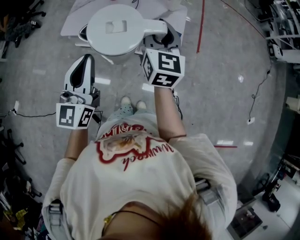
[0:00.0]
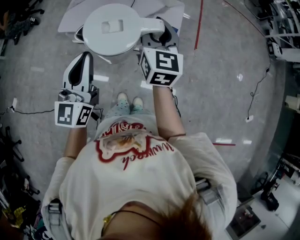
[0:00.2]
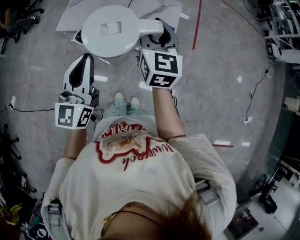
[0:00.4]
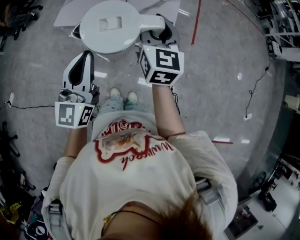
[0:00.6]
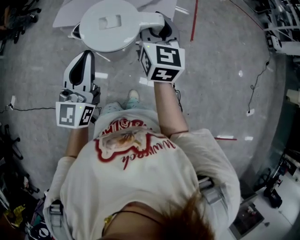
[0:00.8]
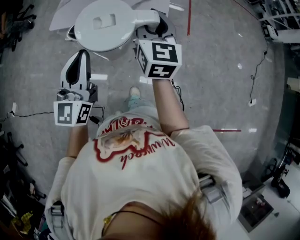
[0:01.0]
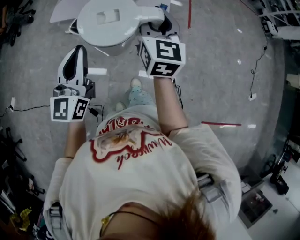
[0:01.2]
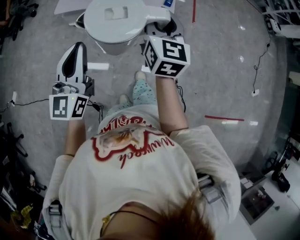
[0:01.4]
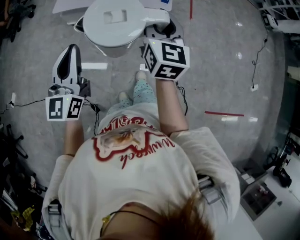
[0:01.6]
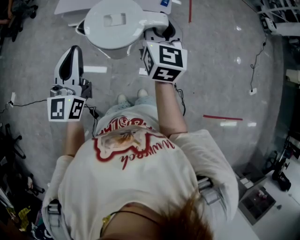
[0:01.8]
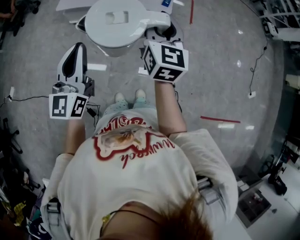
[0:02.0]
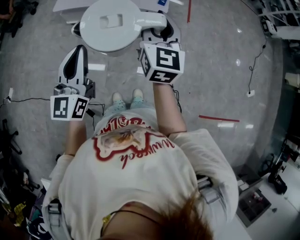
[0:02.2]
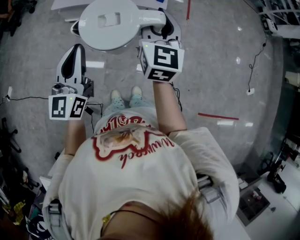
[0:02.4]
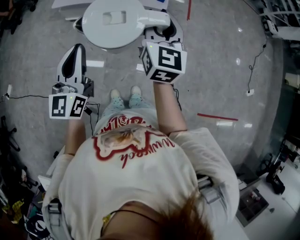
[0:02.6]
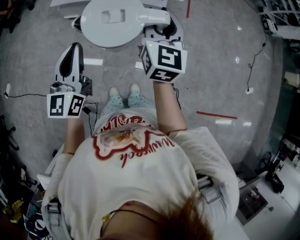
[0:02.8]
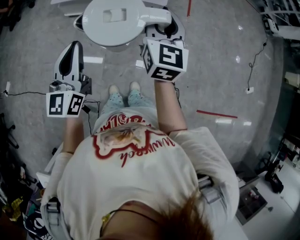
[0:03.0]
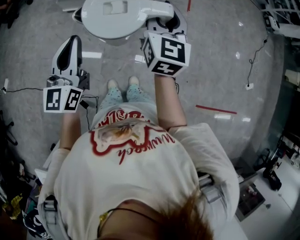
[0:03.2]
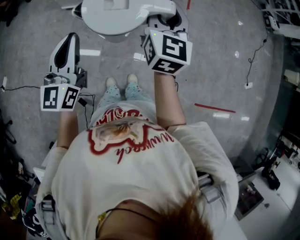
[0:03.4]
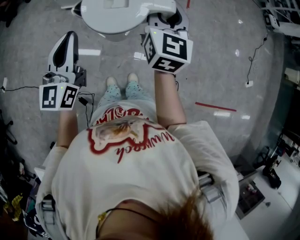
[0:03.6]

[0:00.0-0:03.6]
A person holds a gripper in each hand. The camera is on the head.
0:00.0 to 0:01.8: The two grippers go approximately 20 cm backward.
0:01.8 to 0:03.6: Both grippers move to the right, some 5 cm.

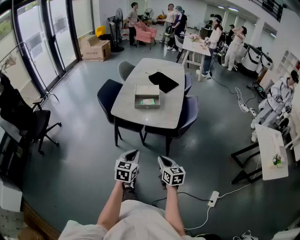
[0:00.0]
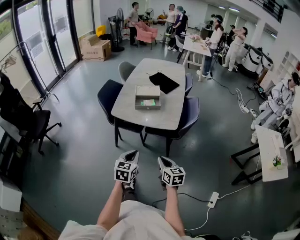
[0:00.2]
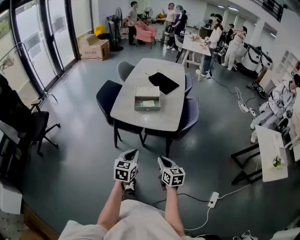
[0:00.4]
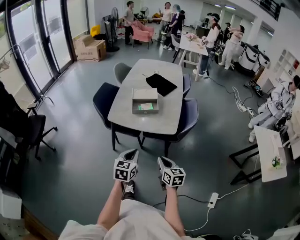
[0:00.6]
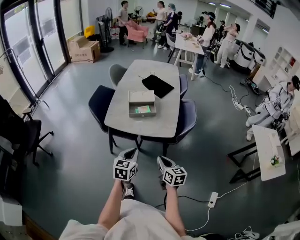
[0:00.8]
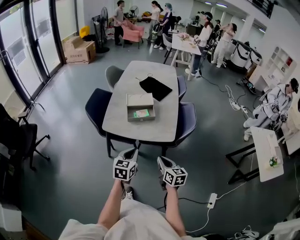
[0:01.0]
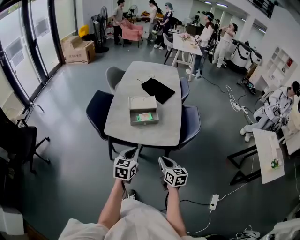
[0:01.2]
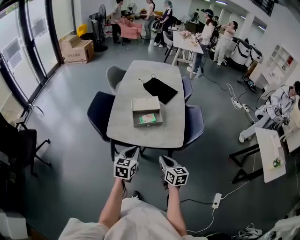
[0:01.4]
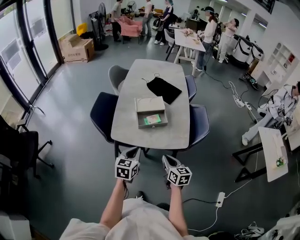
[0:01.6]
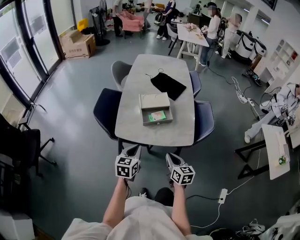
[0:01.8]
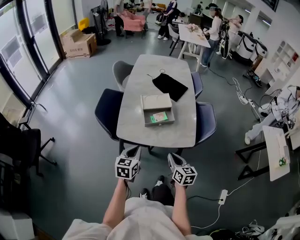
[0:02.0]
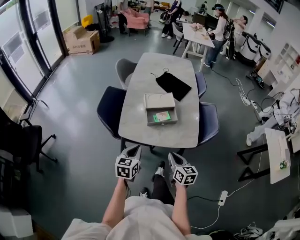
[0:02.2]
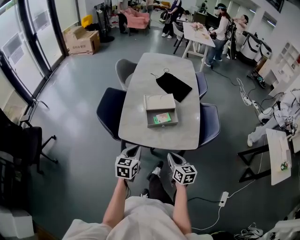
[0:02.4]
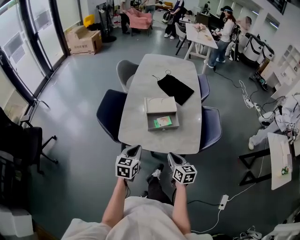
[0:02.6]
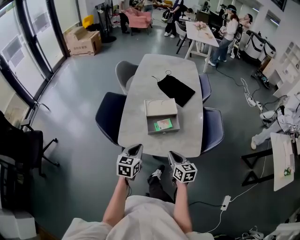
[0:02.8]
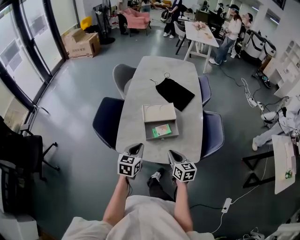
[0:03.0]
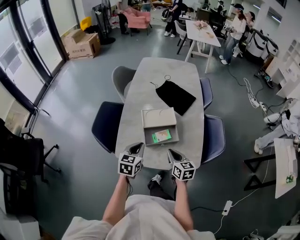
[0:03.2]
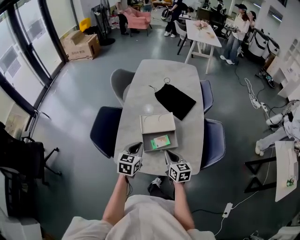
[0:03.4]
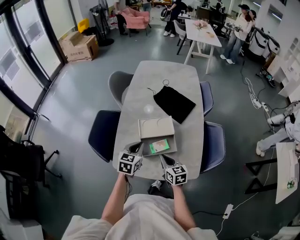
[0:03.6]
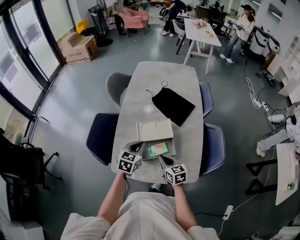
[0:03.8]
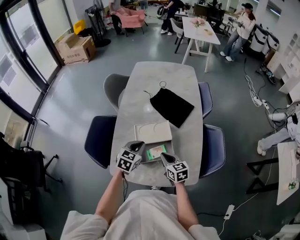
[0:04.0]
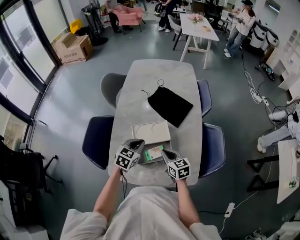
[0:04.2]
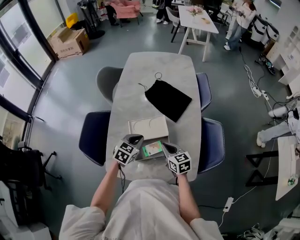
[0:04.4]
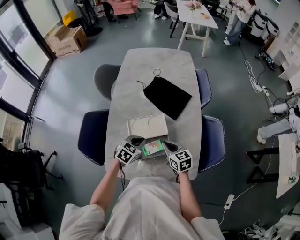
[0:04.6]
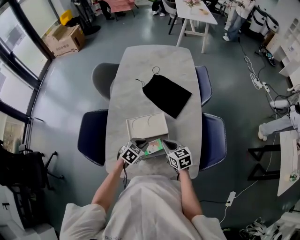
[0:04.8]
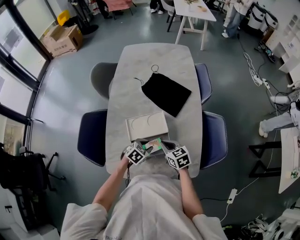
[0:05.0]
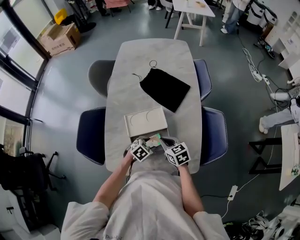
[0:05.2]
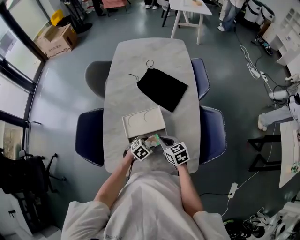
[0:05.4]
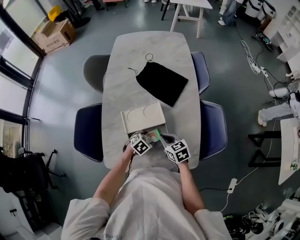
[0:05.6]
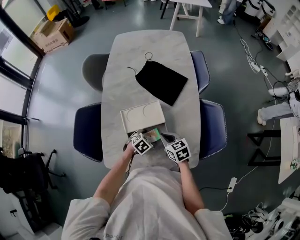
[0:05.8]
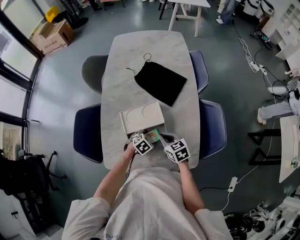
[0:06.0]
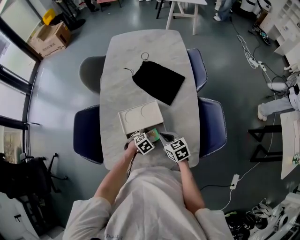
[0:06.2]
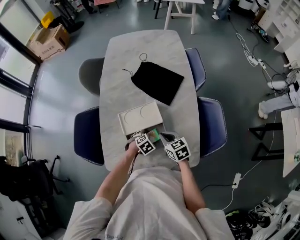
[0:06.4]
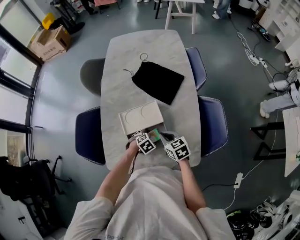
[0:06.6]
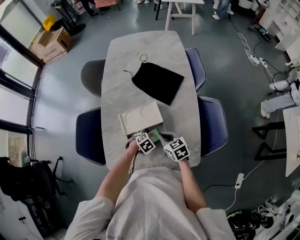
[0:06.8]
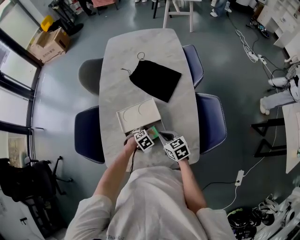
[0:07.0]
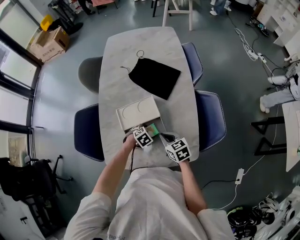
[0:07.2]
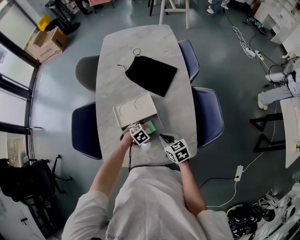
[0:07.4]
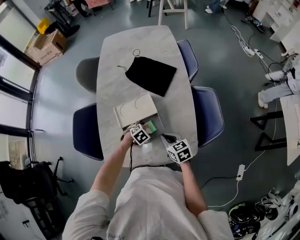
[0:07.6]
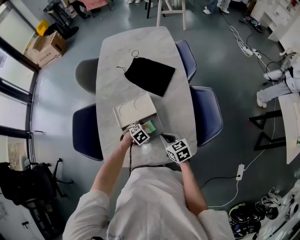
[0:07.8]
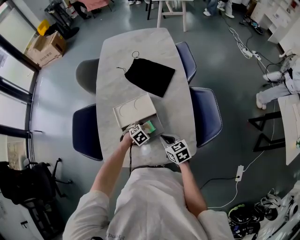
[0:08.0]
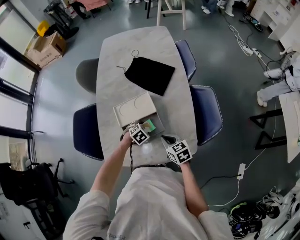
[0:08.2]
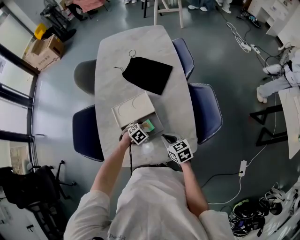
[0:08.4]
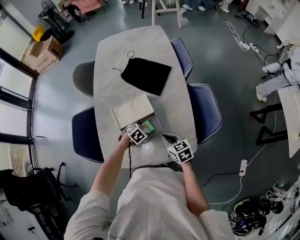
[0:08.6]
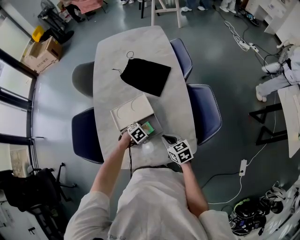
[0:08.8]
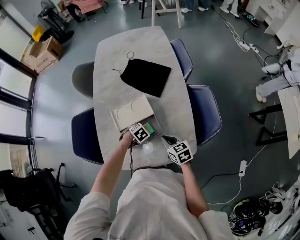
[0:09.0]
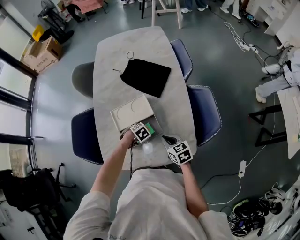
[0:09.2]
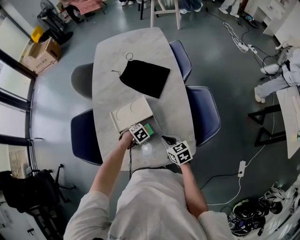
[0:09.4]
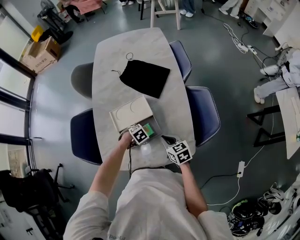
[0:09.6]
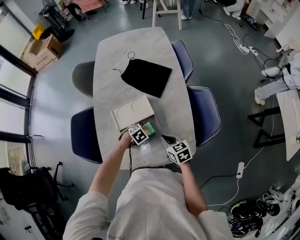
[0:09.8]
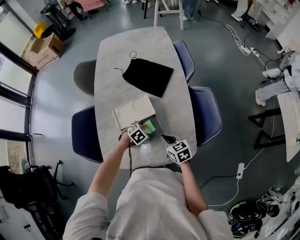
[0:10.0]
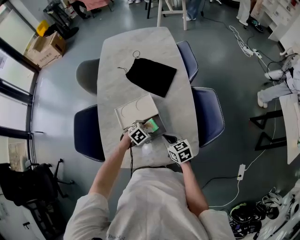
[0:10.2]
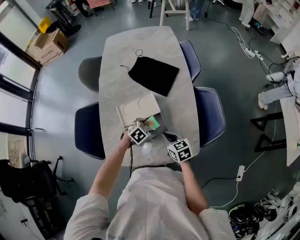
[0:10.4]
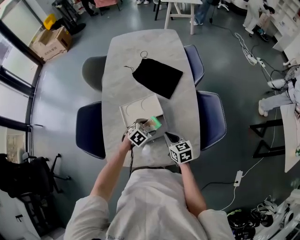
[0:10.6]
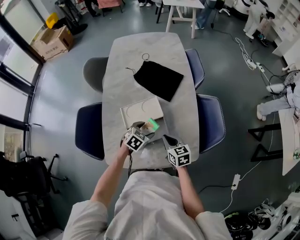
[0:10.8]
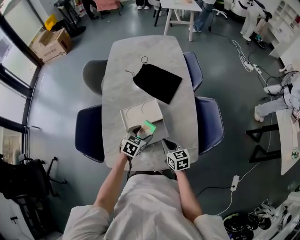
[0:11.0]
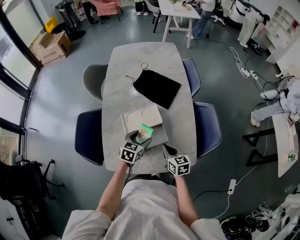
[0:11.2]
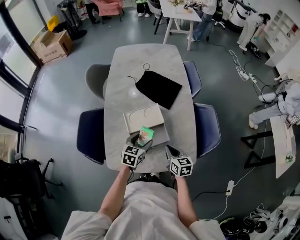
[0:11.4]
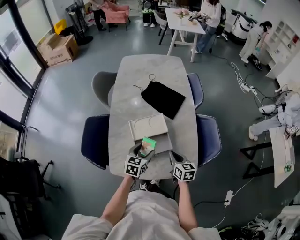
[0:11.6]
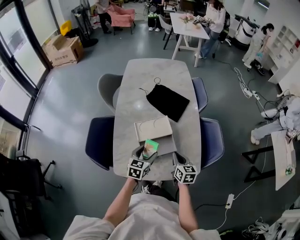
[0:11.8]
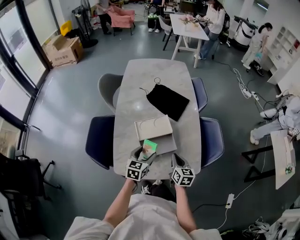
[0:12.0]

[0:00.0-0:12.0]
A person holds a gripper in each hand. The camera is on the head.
0:00.0 to 0:01.6: The right gripper is displaced forward by some 25 cm, while the left gripper goes some 30 cm forward and to the left.
0:01.6 to 0:03.0: Both grippers travel together forward, approximately 15 cm.
0:03.0 to 0:04.4: The two grippers go about 20 cm forward. The left gripper swivels some 20 degrees.
0:04.4 to 0:06.0: The left gripper shifts about 20 cm downward and to the right, rotates about 40 degrees, and opens up, while the right gripper heads downward, covering about 5 cm.
0:06.0 to 0:07.6: The right gripper heads backward and to the right, covering about 10 cm.
0:07.6 to 0:09.0: The grippers make only small movements.
0:09.0 to 0:10.4: The left gripper shifts about 5 cm upward.
0:10.4 to 0:12.0: The right gripper travels upward by approximately 5 cm, and rotates about 30 degrees. Meanwhile the left gripper travels upward, to the left and backward by roughly 20 cm, and points its fingers roughly 30 degrees further upward.

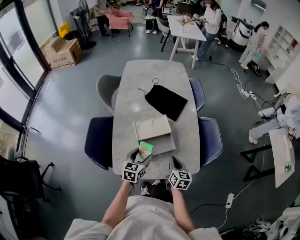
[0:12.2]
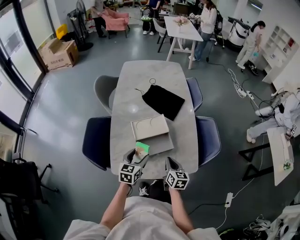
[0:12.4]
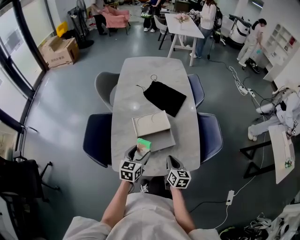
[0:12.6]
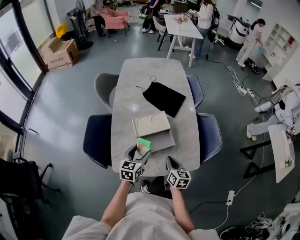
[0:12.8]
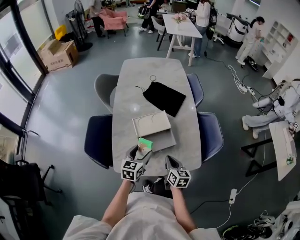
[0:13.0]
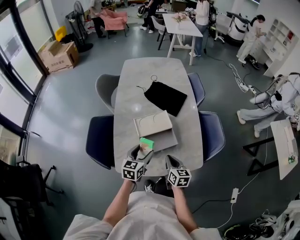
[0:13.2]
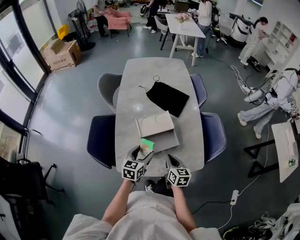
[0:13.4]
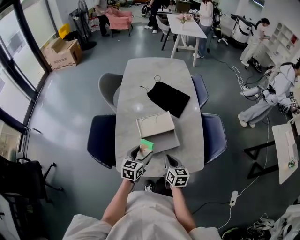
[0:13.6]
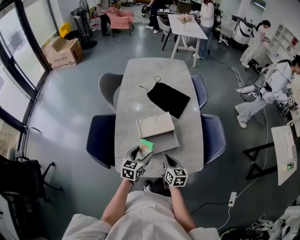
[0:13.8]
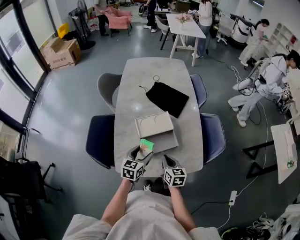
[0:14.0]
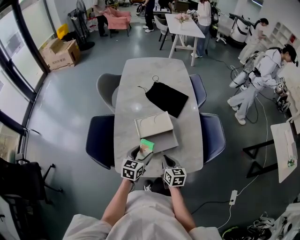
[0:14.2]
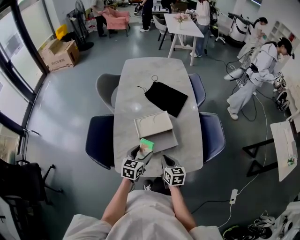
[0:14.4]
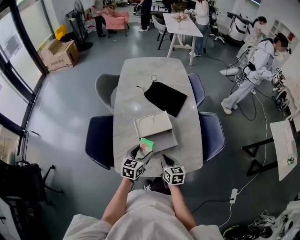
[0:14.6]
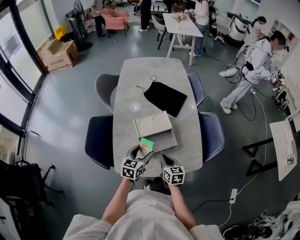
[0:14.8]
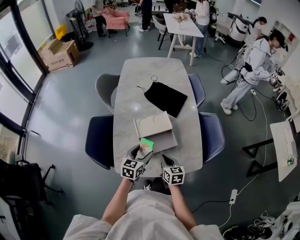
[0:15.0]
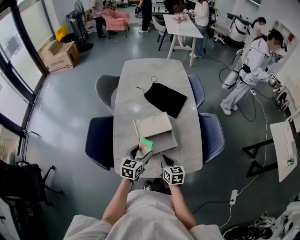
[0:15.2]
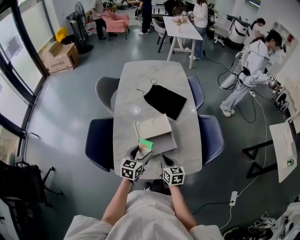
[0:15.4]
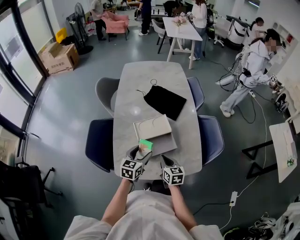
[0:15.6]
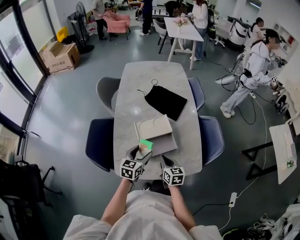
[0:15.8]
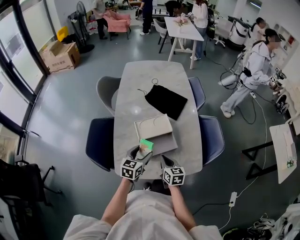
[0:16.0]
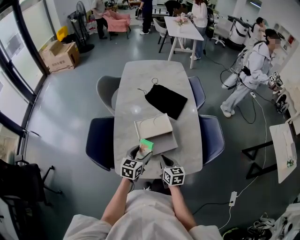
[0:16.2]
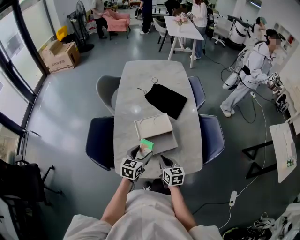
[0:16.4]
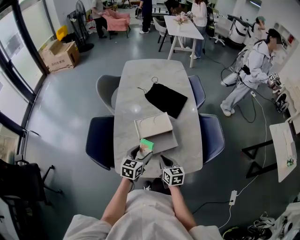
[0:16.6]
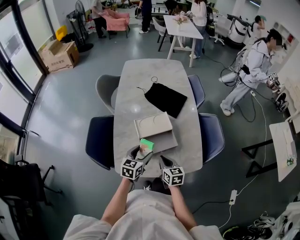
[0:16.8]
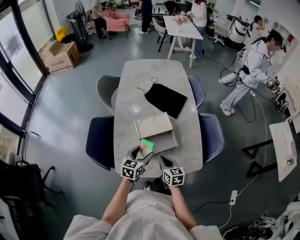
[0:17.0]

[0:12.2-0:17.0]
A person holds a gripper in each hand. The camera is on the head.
0:12.2 to 0:13.8: The right gripper travels to the left by approximately 5 cm.
0:13.8 to 0:17.0: The grippers stay close to where they were, moving slightly.

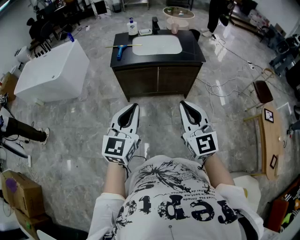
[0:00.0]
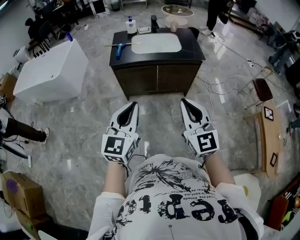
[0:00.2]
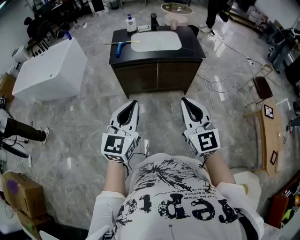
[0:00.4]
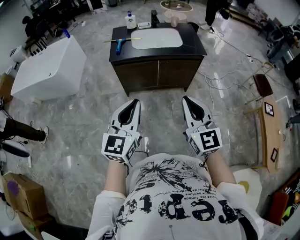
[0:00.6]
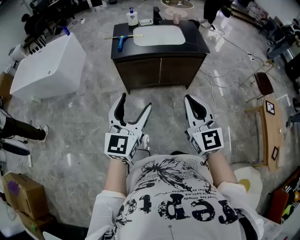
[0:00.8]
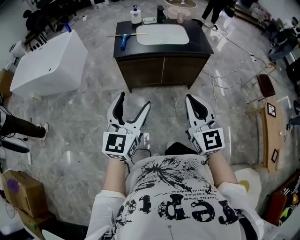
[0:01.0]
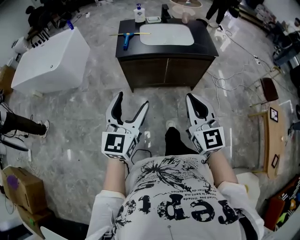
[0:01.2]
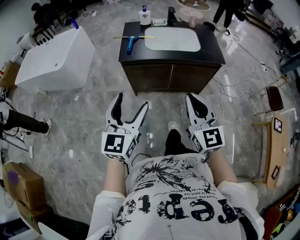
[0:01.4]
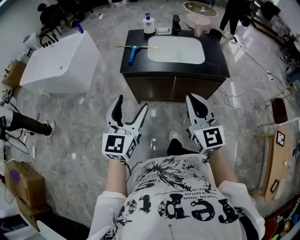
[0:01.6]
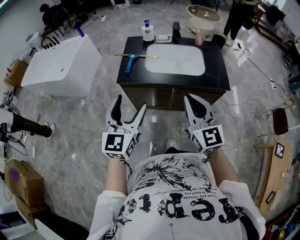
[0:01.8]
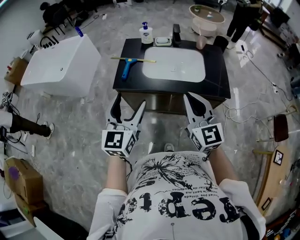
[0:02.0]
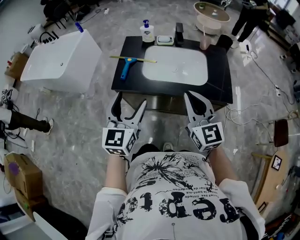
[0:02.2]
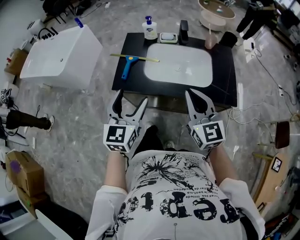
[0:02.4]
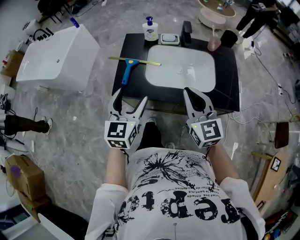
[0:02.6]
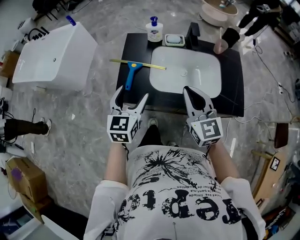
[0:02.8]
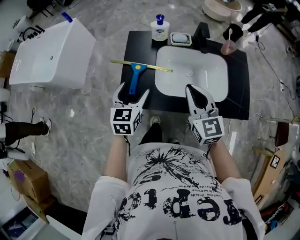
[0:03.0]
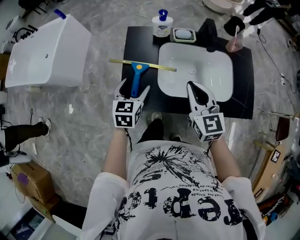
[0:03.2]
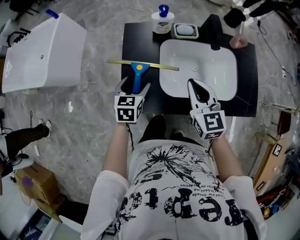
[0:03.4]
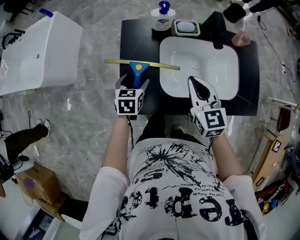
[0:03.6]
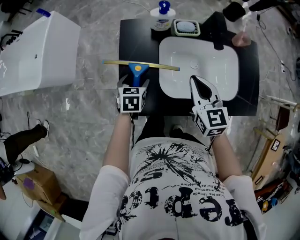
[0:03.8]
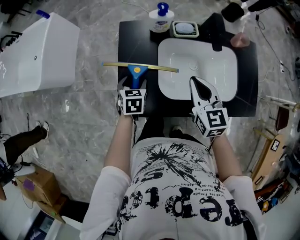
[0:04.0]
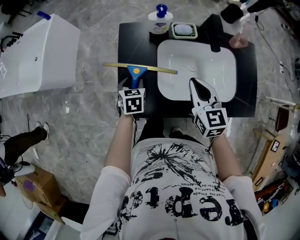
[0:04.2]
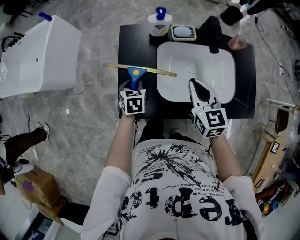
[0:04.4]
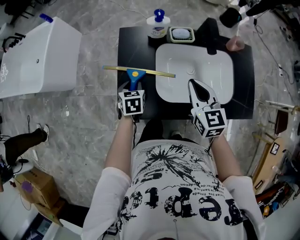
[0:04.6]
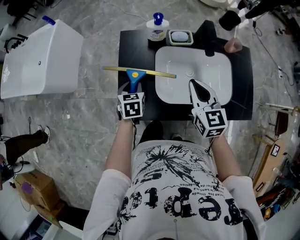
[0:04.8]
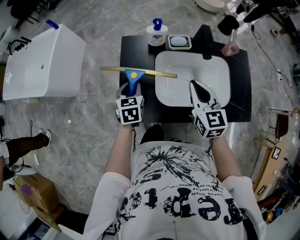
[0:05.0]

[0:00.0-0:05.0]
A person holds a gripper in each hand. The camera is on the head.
0:00.0 to 0:01.6: Both grippers move forward, roughly 25 cm. The left gripper opens its fingers.
0:01.6 to 0:03.4: The pair of grippers is taken forward, approximately 60 cm. The left gripper shifts approximately 25 cm downward, and points its fingers some 40 degrees further downward; the right gripper rotates some 20 degrees.
0:03.4 to 0:05.0: The left gripper reaches some 10 cm downward, then returns, and closes its fingers.
